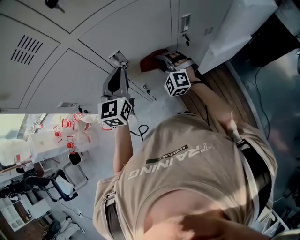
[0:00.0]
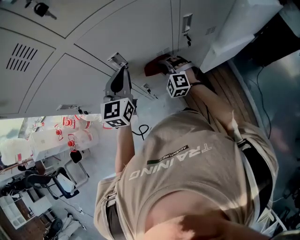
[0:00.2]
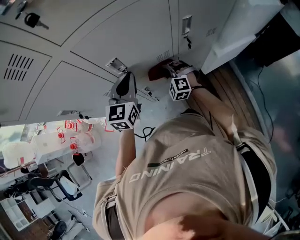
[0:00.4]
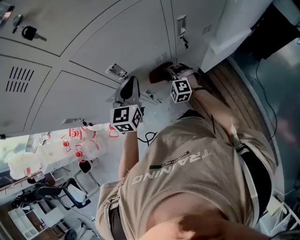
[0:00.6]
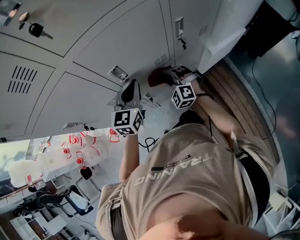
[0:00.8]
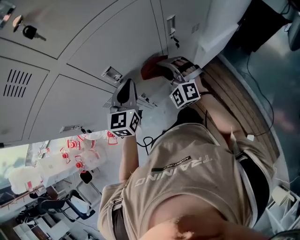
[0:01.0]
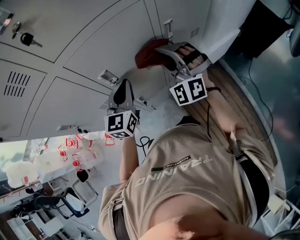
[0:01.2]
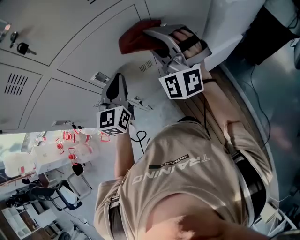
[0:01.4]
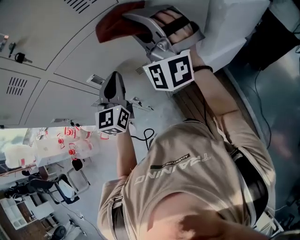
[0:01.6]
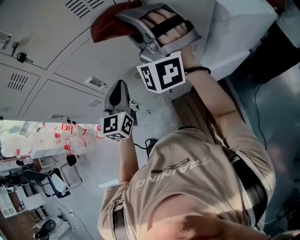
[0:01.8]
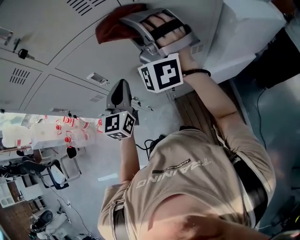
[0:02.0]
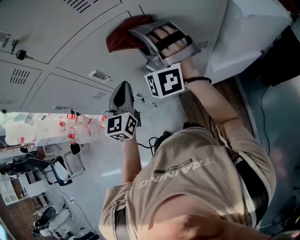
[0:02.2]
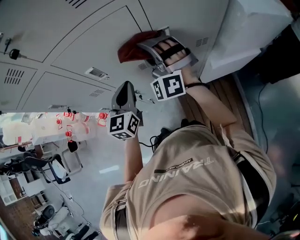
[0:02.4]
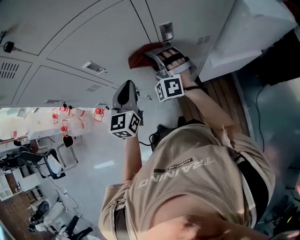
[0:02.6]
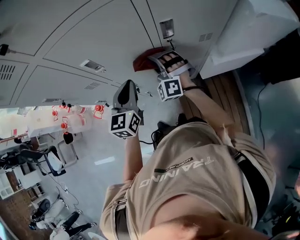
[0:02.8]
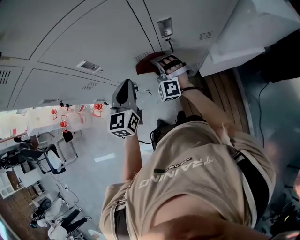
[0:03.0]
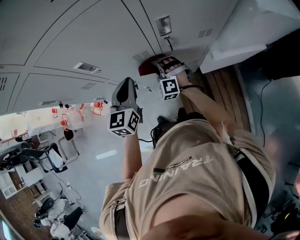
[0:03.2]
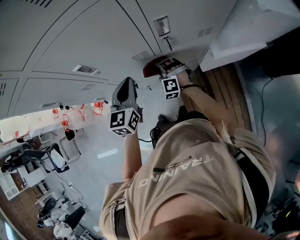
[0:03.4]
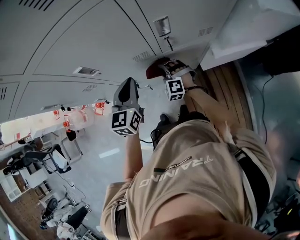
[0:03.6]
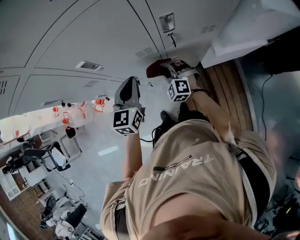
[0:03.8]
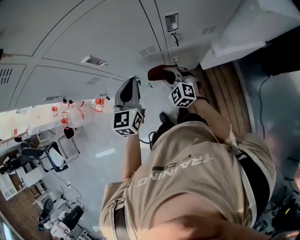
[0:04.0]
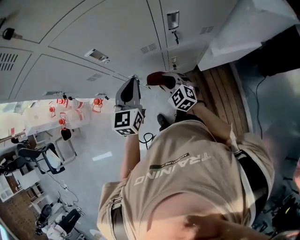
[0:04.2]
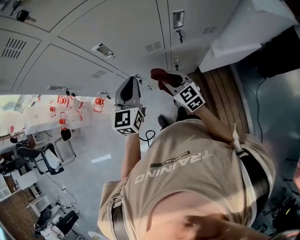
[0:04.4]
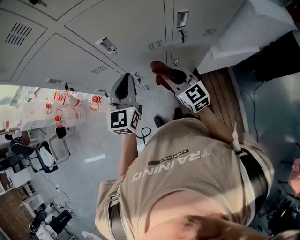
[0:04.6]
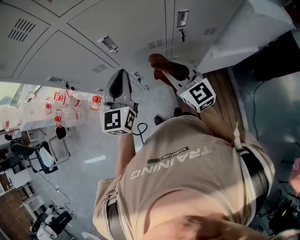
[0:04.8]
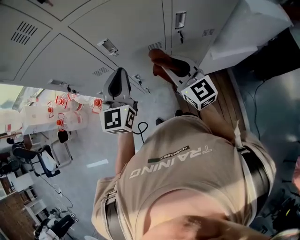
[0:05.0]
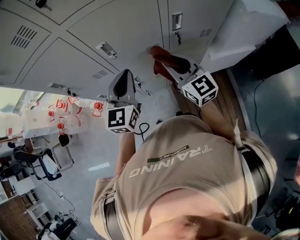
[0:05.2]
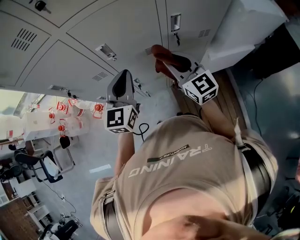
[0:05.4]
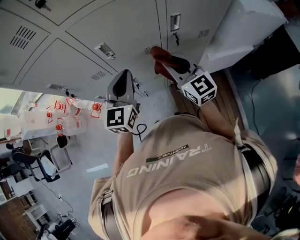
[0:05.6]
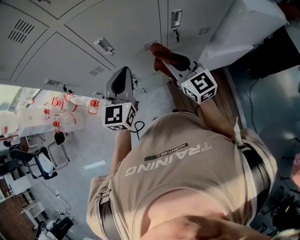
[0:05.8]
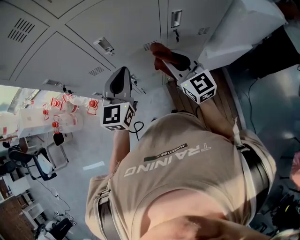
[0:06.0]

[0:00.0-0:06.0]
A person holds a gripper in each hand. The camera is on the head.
0.0 to 1.6 s: The right gripper shifts about 35 cm upward, and points its fingers some 40 degrees further upward, while the left gripper travels to the right by some 10 cm.
1.6 to 3.0 s: The right gripper shifts approximately 40 cm downward, and points its fingers some 40 degrees further downward, while the left gripper travels downward by some 10 cm.
3.0 to 4.4 s: The right gripper travels backward by about 10 cm, travels downward and back again, approximately 10 cm each way, and rolls clockwise, seen from behind, by approximately 60 degrees; the left gripper changes place by roughly 5 cm.
4.4 to 6.0 s: The left gripper heads upward, covering about 5 cm. Meanwhile the right gripper travels upward by about 15 cm, and rotates approximately 20 degrees.

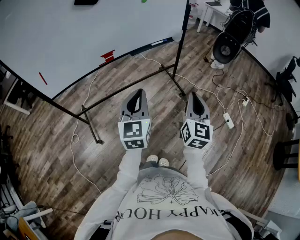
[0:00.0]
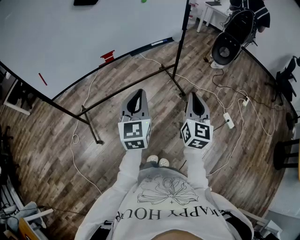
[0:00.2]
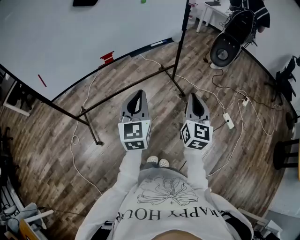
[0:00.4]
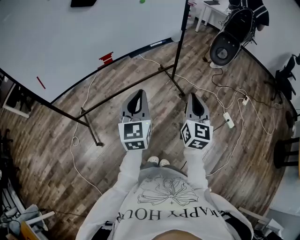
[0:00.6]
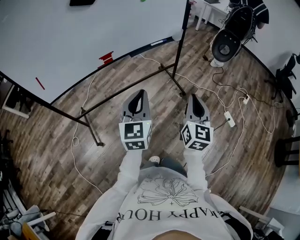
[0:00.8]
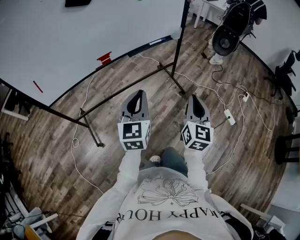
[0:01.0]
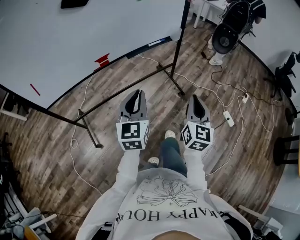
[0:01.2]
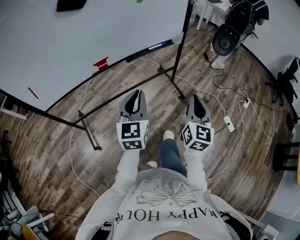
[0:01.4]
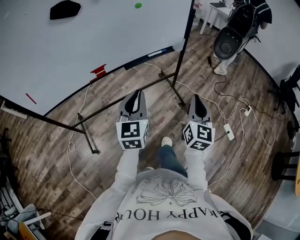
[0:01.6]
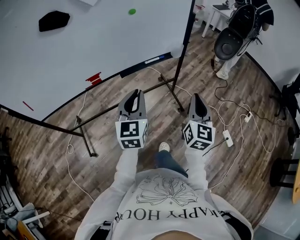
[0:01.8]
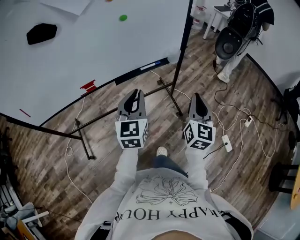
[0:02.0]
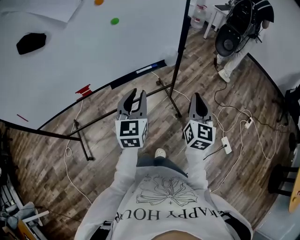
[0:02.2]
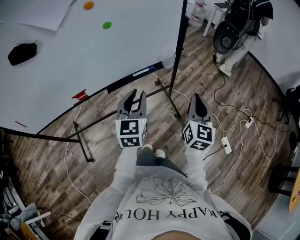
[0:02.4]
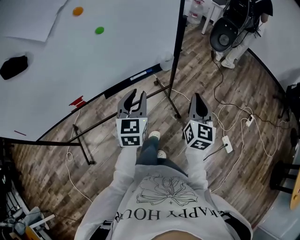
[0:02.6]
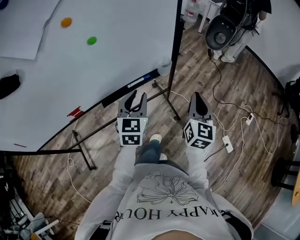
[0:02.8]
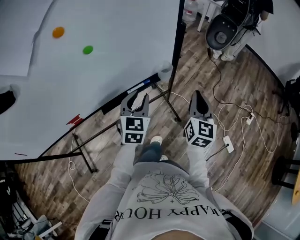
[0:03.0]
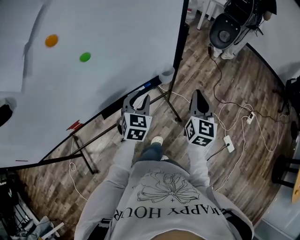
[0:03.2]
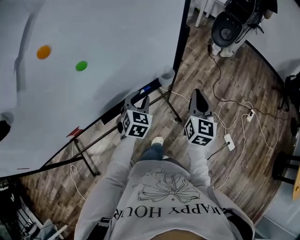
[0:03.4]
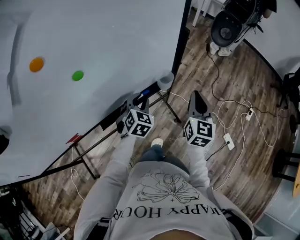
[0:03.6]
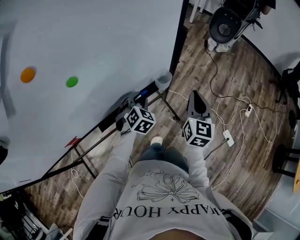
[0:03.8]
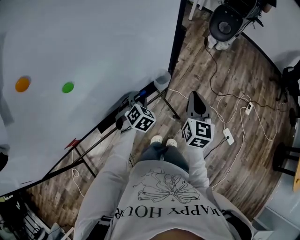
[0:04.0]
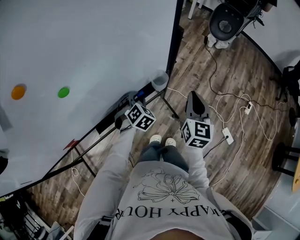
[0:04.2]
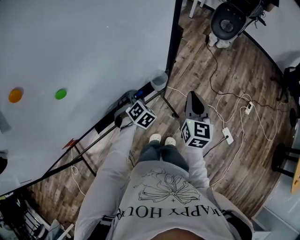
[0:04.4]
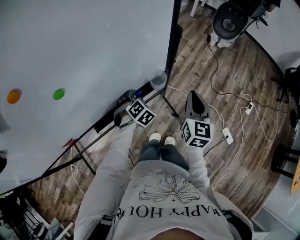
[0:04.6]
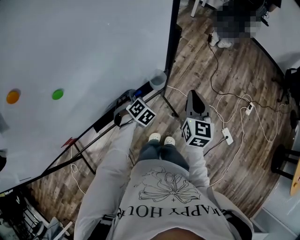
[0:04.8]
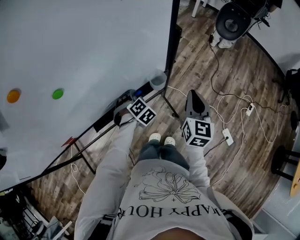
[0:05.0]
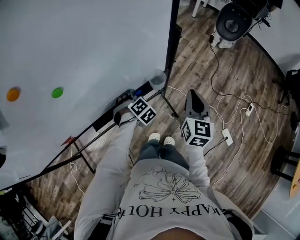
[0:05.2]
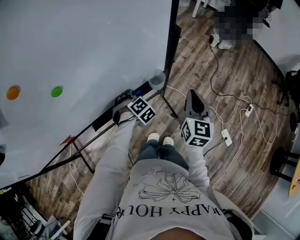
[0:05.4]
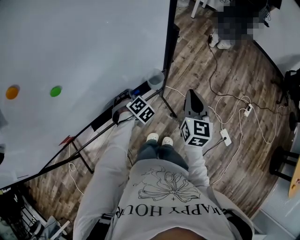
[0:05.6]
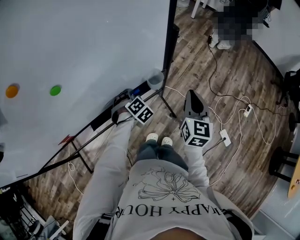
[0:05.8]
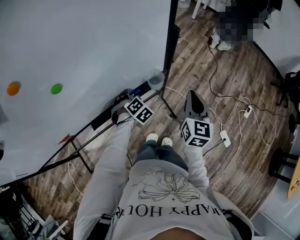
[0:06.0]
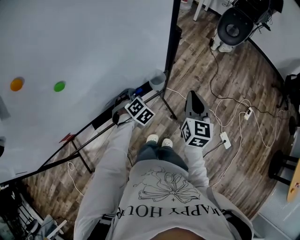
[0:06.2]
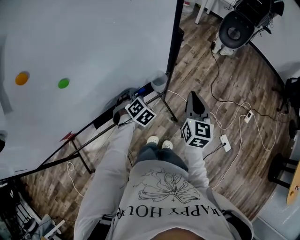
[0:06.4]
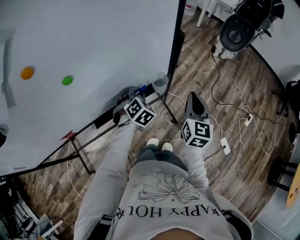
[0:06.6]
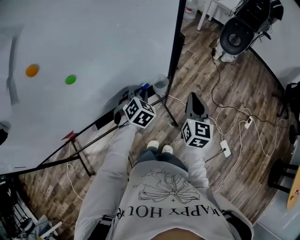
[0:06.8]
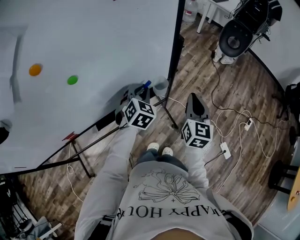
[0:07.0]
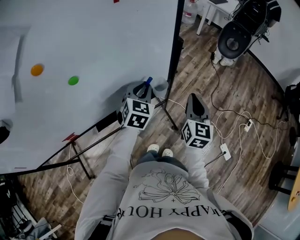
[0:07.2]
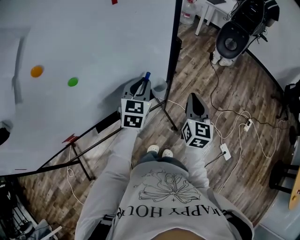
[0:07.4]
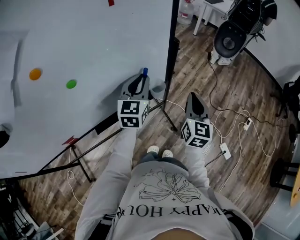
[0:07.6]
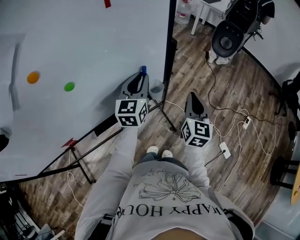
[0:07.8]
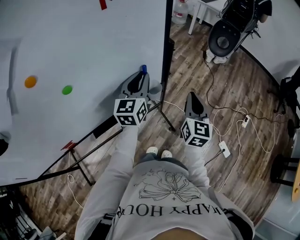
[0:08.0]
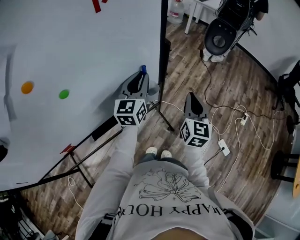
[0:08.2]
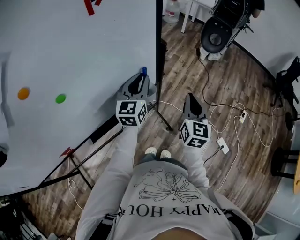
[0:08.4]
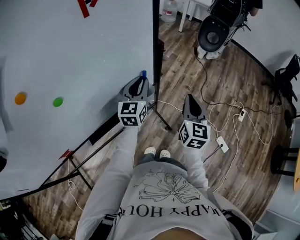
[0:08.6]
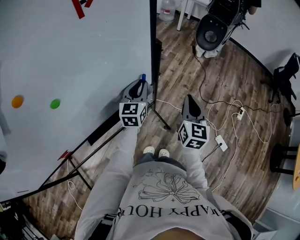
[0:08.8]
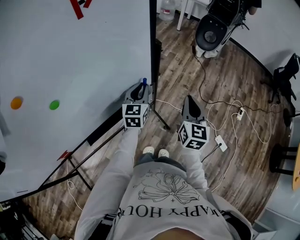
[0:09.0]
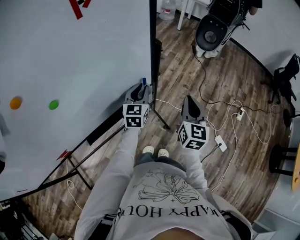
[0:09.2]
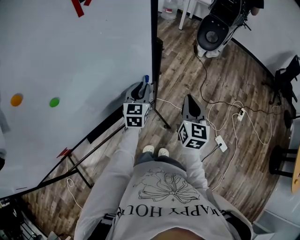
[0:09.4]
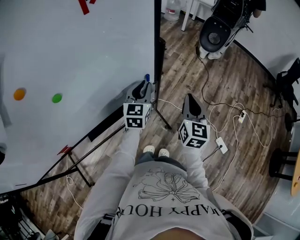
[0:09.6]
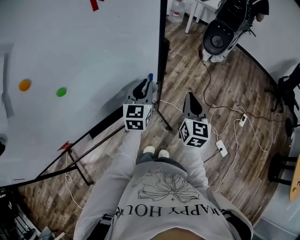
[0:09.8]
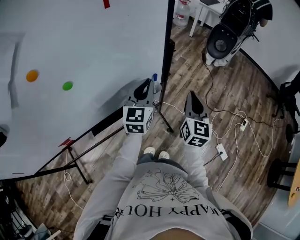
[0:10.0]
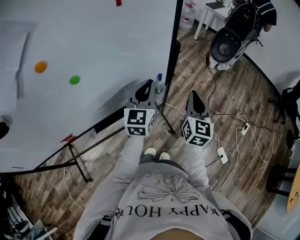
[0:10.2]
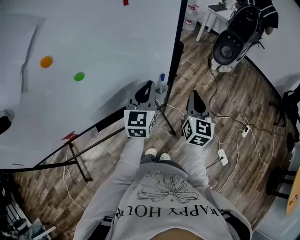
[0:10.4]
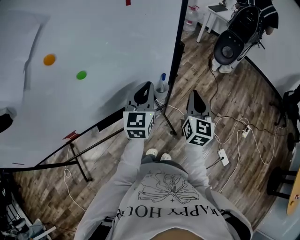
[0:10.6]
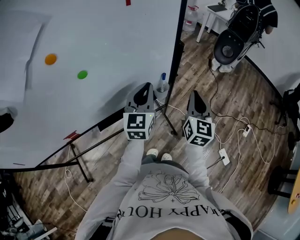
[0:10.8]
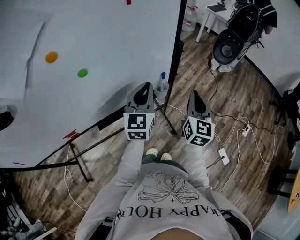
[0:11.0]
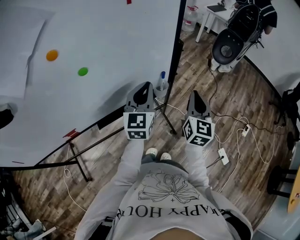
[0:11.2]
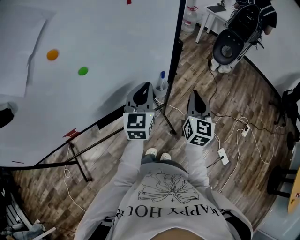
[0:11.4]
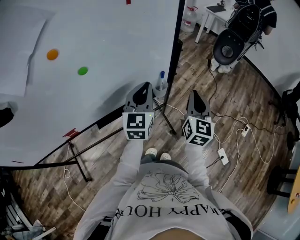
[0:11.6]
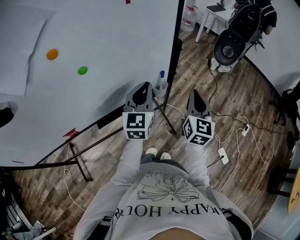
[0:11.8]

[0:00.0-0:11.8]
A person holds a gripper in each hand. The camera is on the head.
0.0 to 1.4 s: Both grippers move forward, roughly 10 cm.
1.4 to 3.0 s: The pair of grippers is taken forward, approximately 40 cm. The left gripper opens.
3.0 to 4.4 s: The right gripper heads forward and downward, covering some 10 cm. Meanwhile the left gripper goes approximately 20 cm downward and forward, and tips its fingers downward by some 30 degrees.
4.4 to 6.0 s: The grippers move only a little.
6.0 to 7.4 s: The left gripper heads upward, covering approximately 20 cm, and tips its fingers upward by roughly 40 degrees.
7.4 to 8.8 s: The left gripper goes roughly 5 cm forward.
8.8 to 10.4 s: The right gripper moves approximately 5 cm, while the left gripper shifts some 15 cm upward and backward.
10.4 to 11.8 s: The grippers make only small movements.

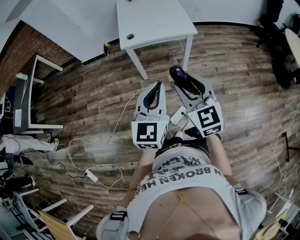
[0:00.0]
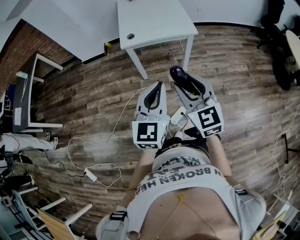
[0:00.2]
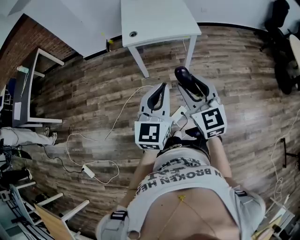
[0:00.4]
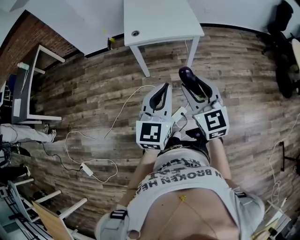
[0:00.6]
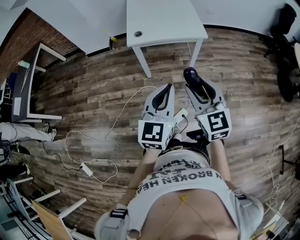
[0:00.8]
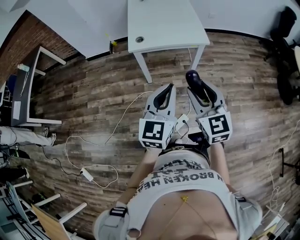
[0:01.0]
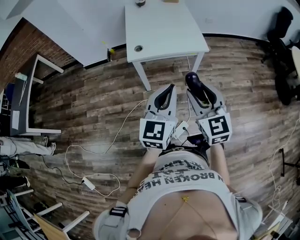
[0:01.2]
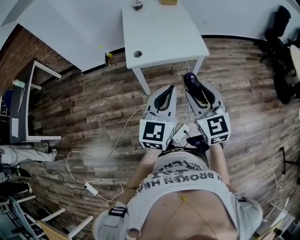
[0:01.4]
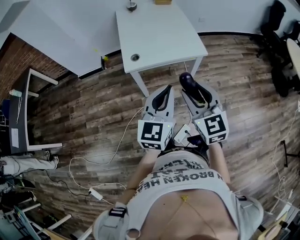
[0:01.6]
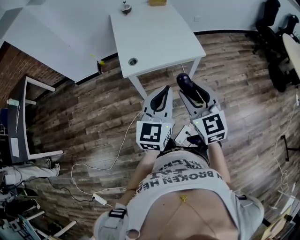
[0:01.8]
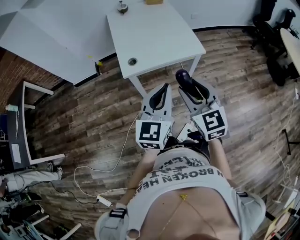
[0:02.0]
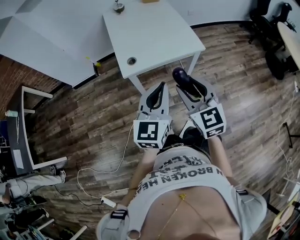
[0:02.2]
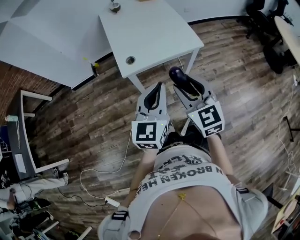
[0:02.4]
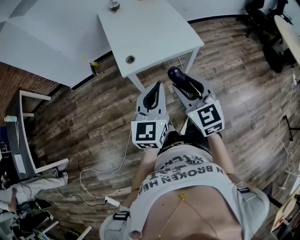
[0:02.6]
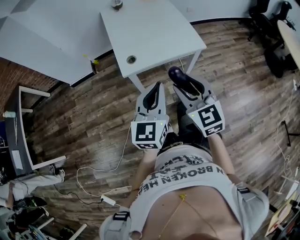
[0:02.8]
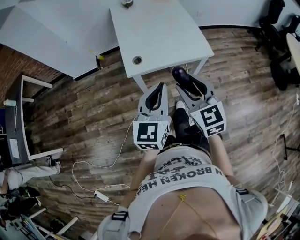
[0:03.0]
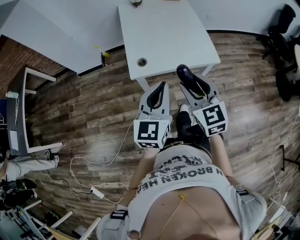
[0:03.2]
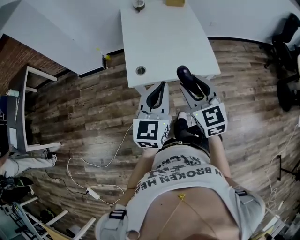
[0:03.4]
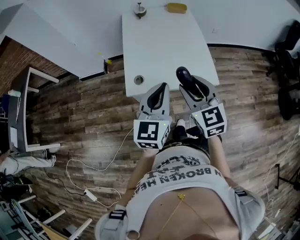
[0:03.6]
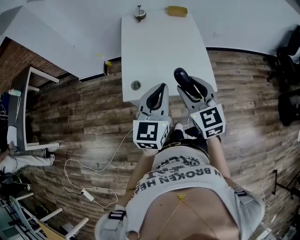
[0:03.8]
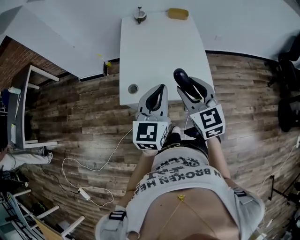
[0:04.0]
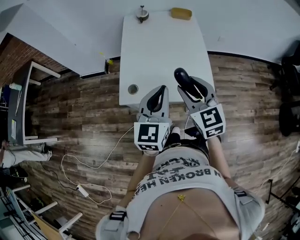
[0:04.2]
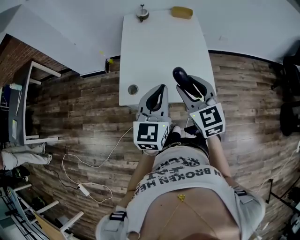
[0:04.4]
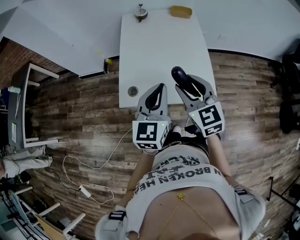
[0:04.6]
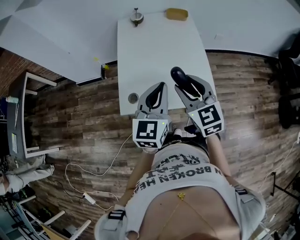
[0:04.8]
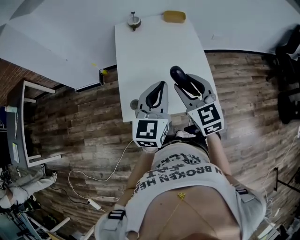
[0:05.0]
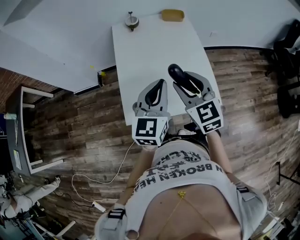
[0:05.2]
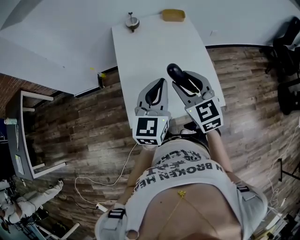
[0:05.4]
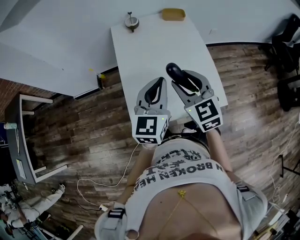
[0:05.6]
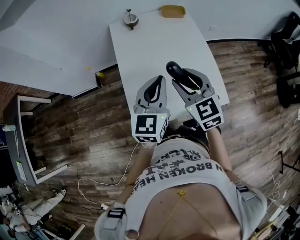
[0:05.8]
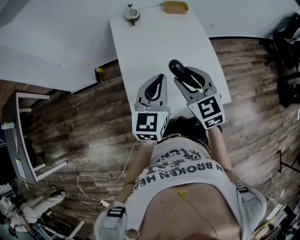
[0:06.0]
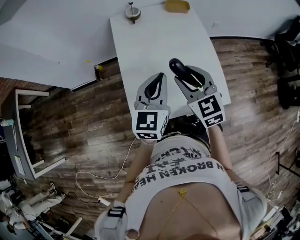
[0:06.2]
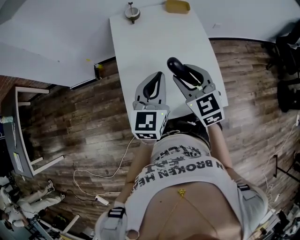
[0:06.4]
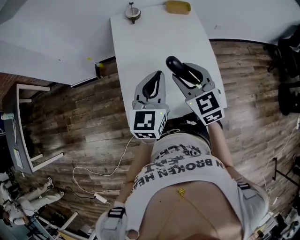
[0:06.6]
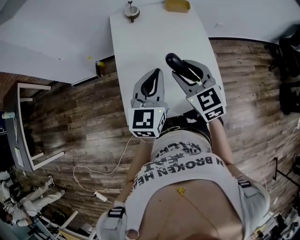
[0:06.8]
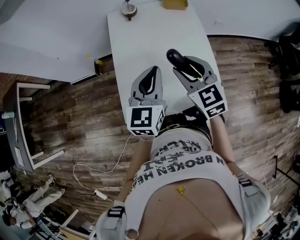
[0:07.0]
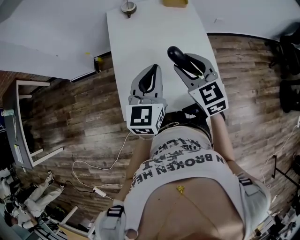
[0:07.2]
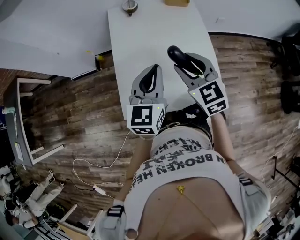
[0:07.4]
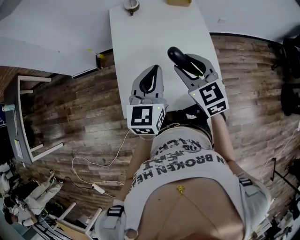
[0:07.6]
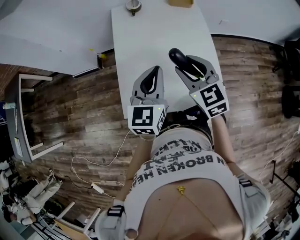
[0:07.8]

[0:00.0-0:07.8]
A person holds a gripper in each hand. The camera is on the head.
0.0 to 1.6 s: The grippers both shift forward by approximately 20 cm.
1.6 to 3.2 s: The right gripper travels forward by some 15 cm. The left gripper travels forward and to the left by roughly 15 cm.
3.2 to 4.6 s: Both grippers travel together forward and to the right, about 25 cm.
4.6 to 6.2 s: Both grippers travel together forward and to the left, about 20 cm.
6.2 to 7.8 s: The right gripper travels to the right by some 5 cm.
